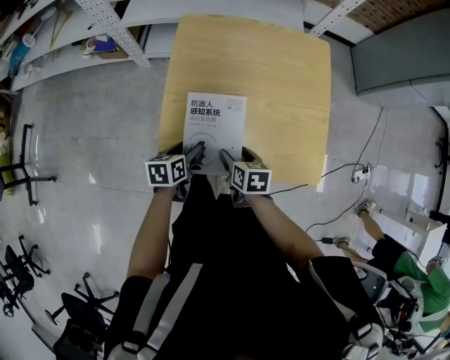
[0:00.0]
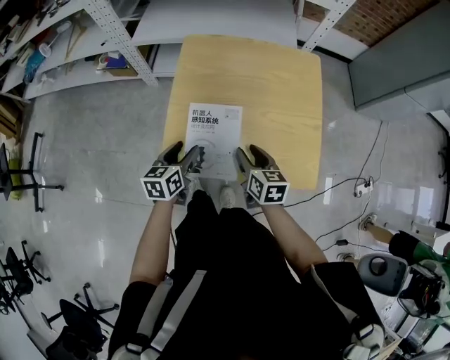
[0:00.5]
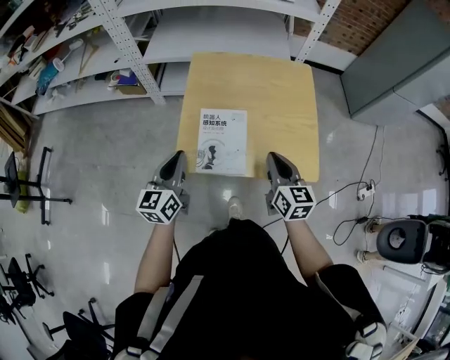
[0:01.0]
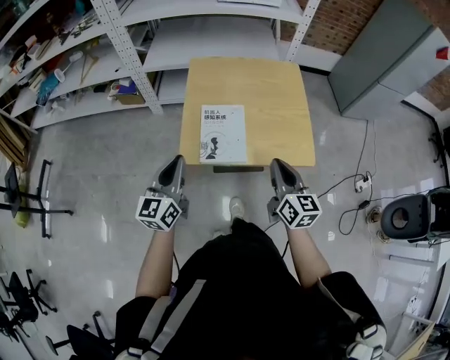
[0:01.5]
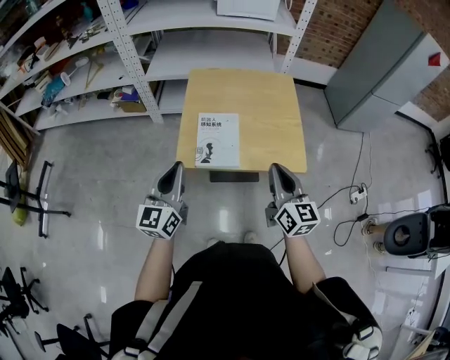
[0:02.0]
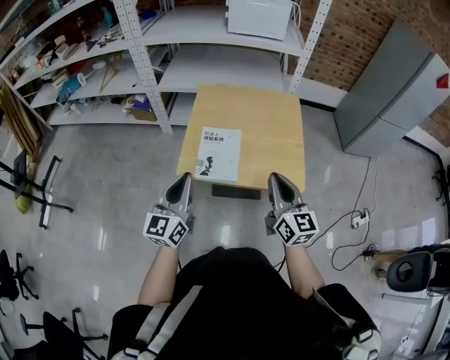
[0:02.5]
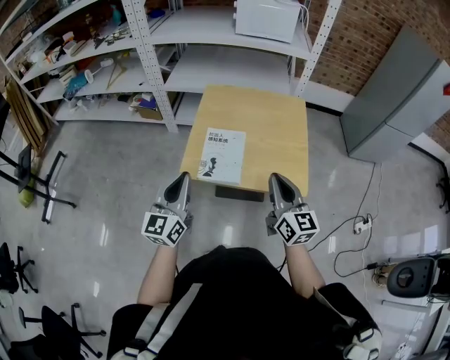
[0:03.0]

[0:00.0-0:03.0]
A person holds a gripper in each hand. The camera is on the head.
0:00.0 to 0:01.5: Both grippers move upward and backward, about 30 cm. The right gripper tilts its fingers some 40 degrees upward, and closes, while the left gripper angles its fingers upward, by about 40 degrees, and closes its fingers.
0:01.5 to 0:03.0: The left gripper heads to the right and upward, covering about 5 cm, while the right gripper is displaced upward by approximately 5 cm.

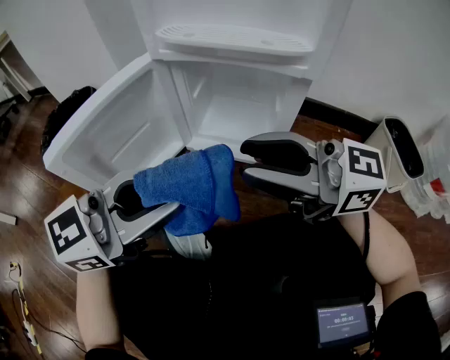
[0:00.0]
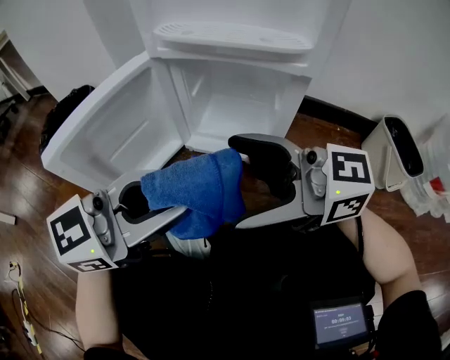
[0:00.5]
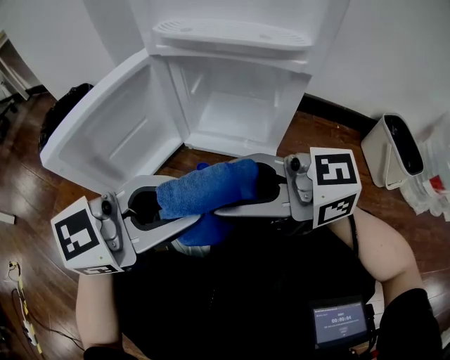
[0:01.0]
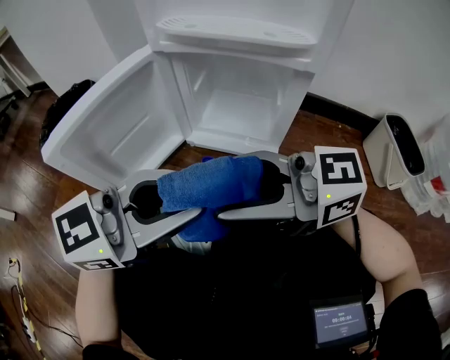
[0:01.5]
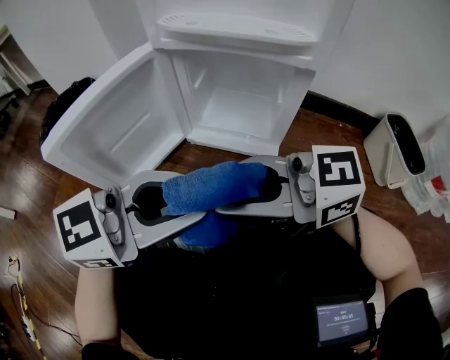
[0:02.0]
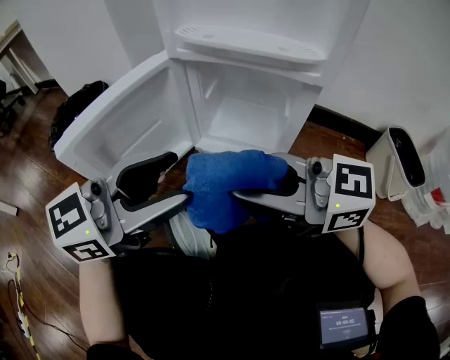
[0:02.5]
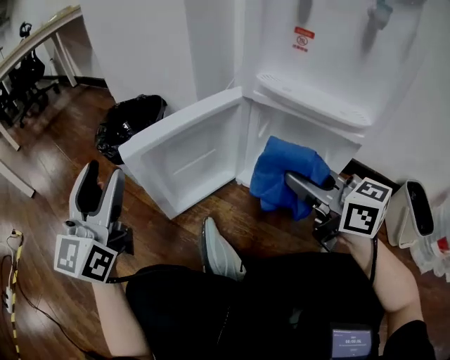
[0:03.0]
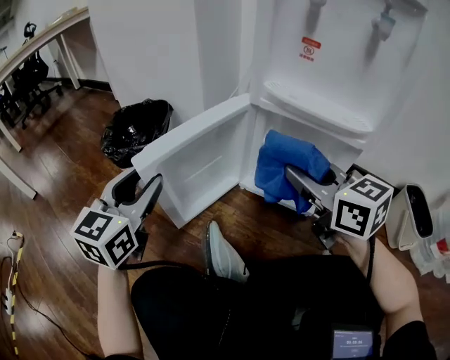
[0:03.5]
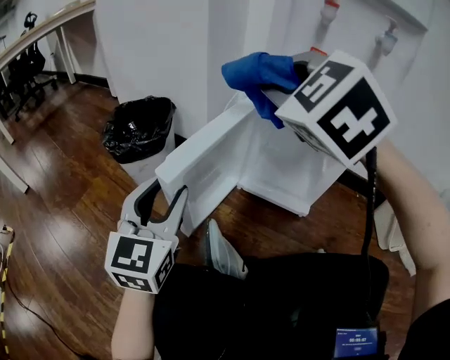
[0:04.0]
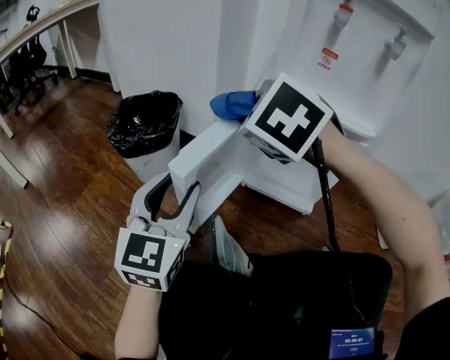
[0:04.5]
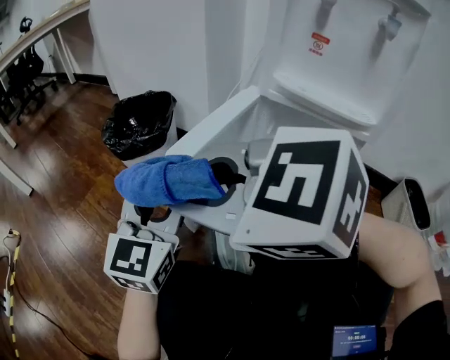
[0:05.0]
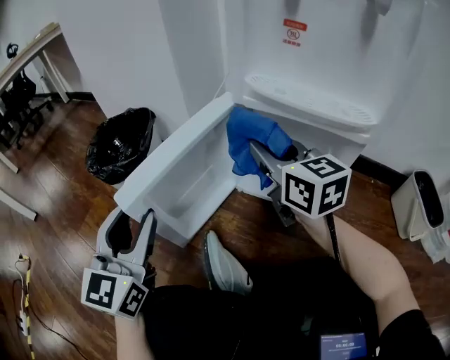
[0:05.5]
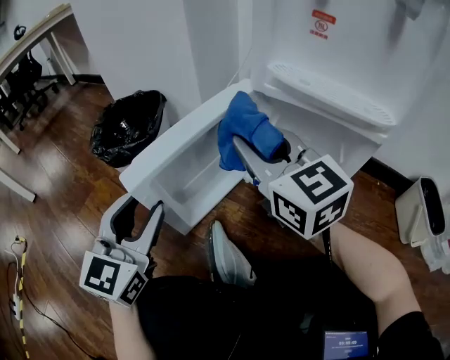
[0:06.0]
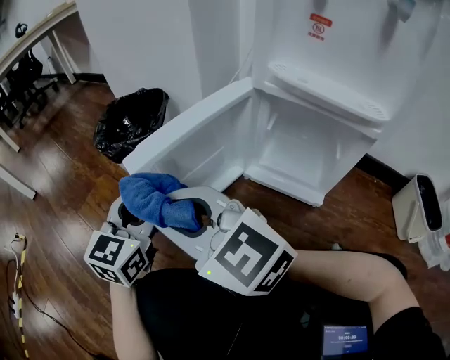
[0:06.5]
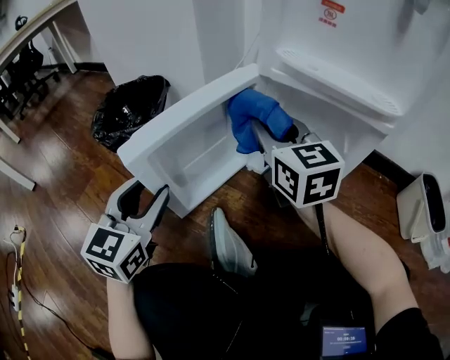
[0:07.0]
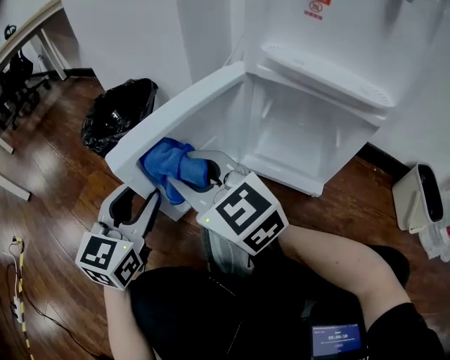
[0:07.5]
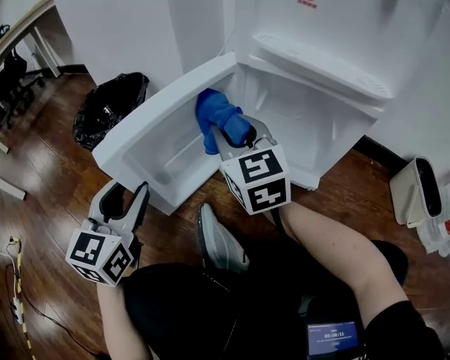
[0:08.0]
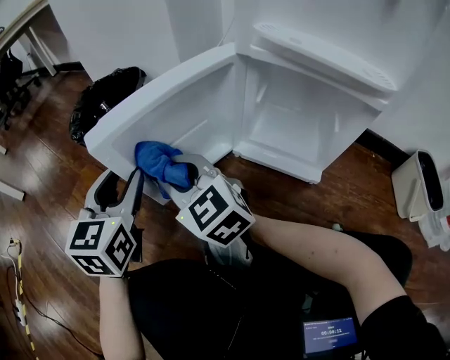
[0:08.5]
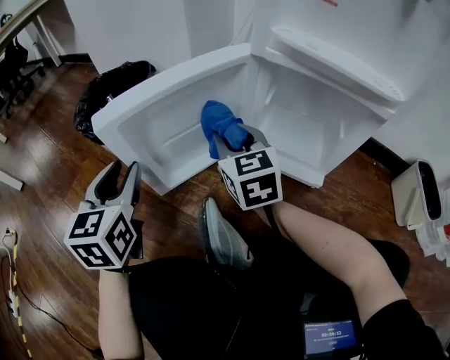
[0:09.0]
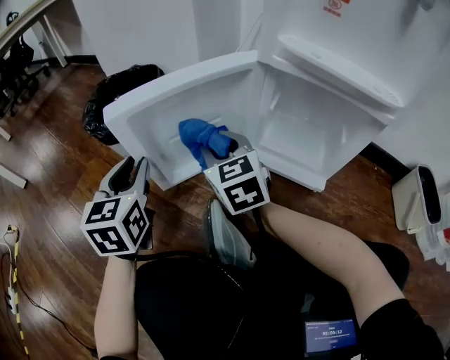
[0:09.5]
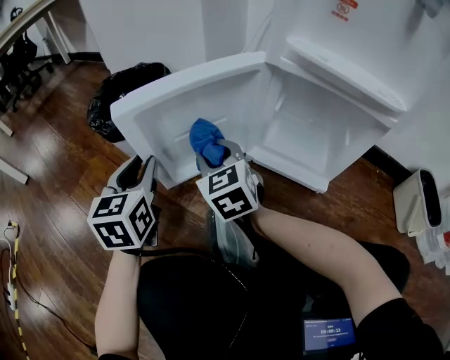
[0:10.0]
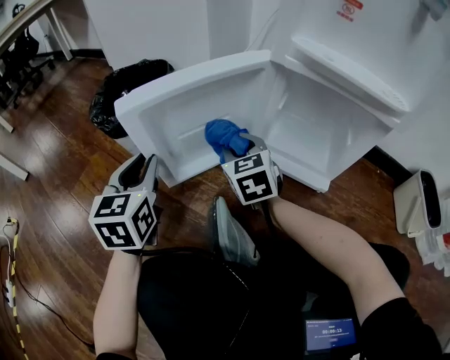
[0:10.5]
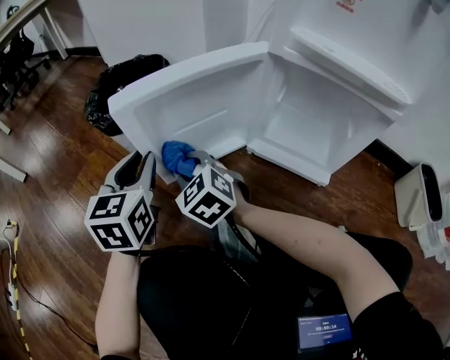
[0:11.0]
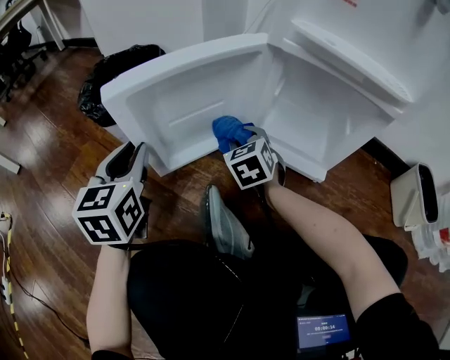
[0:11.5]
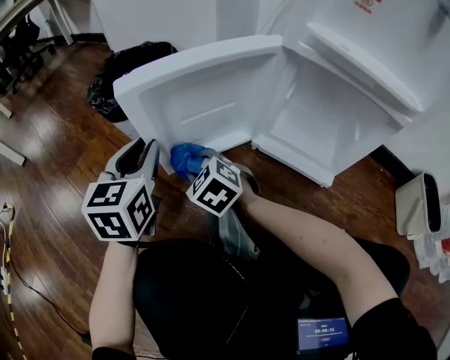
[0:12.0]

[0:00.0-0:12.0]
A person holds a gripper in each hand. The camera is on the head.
0:00.0 to 0:02.0: The right gripper ends up some 10 cm from where it was, and opens, then closes again.
0:02.0 to 0:04.0: The left gripper moves approximately 25 cm, and turns by about 70 degrees. Meanwhile the right gripper shifts by roughly 25 cm, and swivels roughly 80 degrees.
0:04.0 to 0:06.0: The right gripper heads downward, covering approximately 15 cm, and twists approximately 40 degrees clockwise, seen from behind.
0:06.0 to 0:08.0: The right gripper goes left and right, some 20 cm each way, reversing 3 times.
0:08.0 to 0:10.0: The right gripper goes left and right, some 15 cm each way, reversing 2 times. Meanwhile the left gripper shifts roughly 5 cm forward.
0:10.0 to 0:12.0: The right gripper swings left and right, approximately 20 cm each way, with 3 reversals, and rotates about 30 degrees.

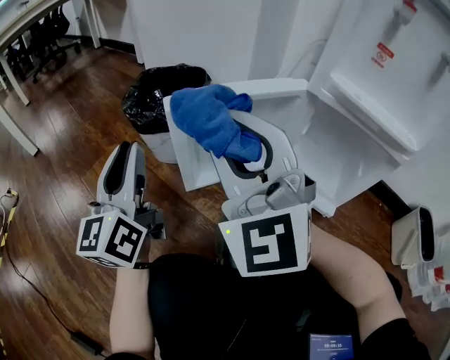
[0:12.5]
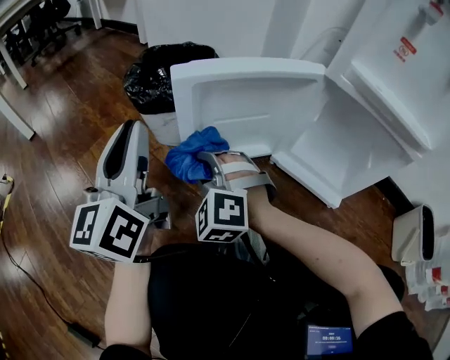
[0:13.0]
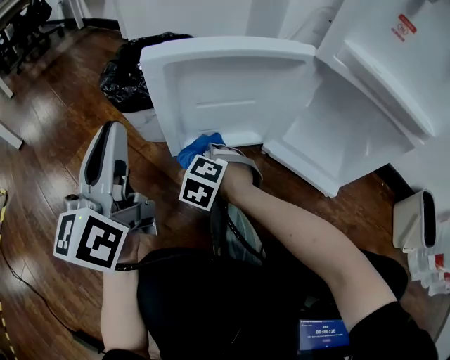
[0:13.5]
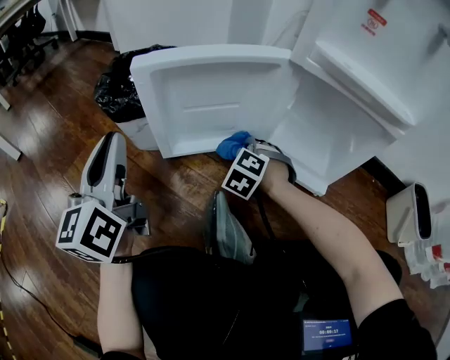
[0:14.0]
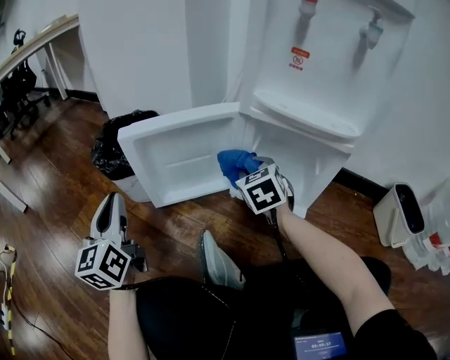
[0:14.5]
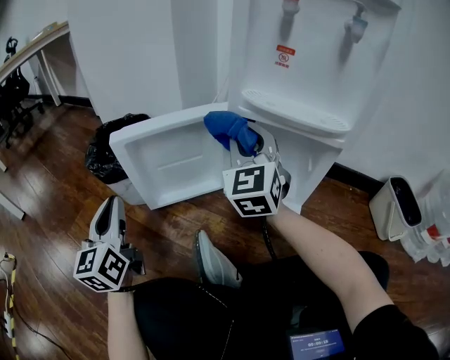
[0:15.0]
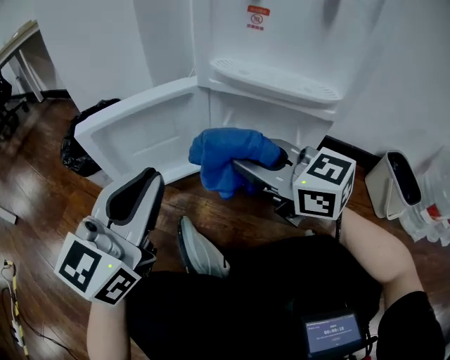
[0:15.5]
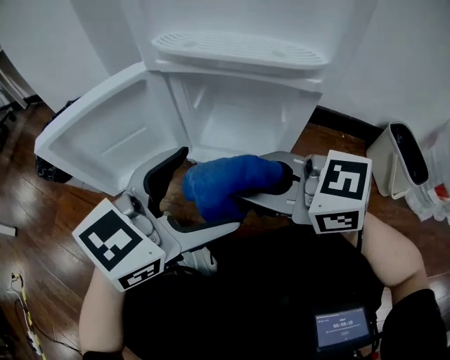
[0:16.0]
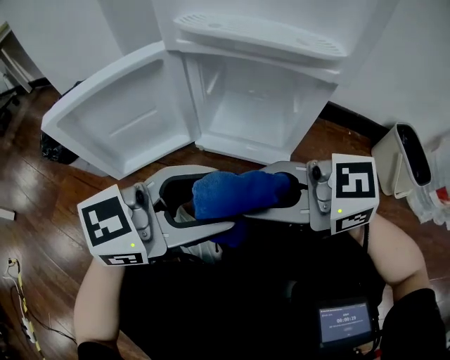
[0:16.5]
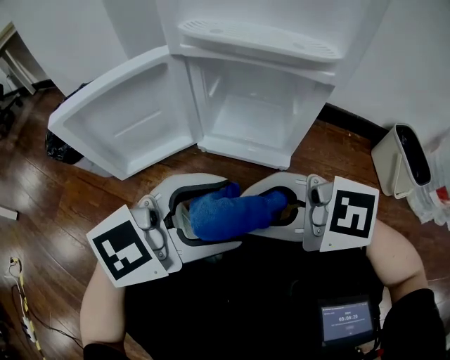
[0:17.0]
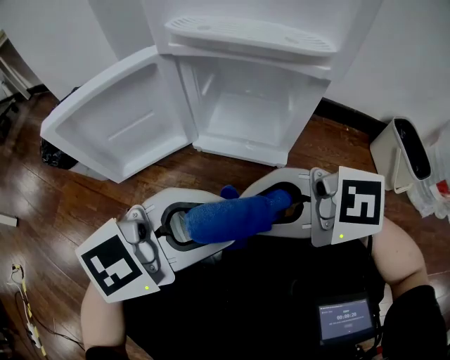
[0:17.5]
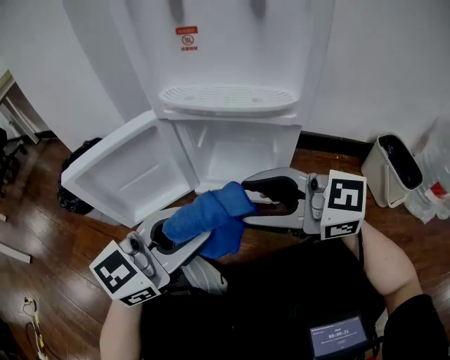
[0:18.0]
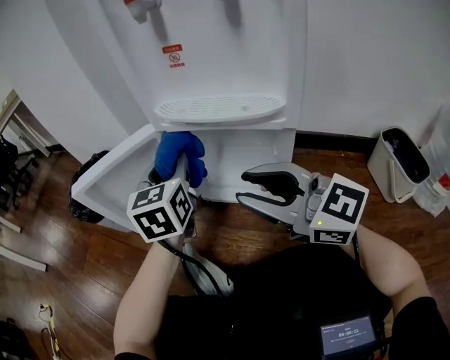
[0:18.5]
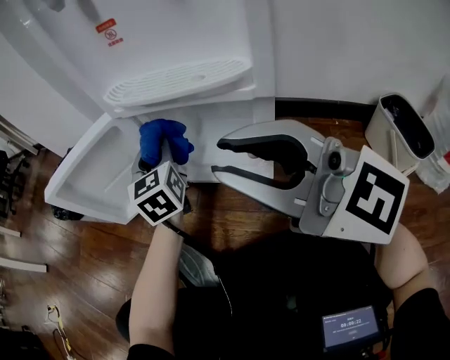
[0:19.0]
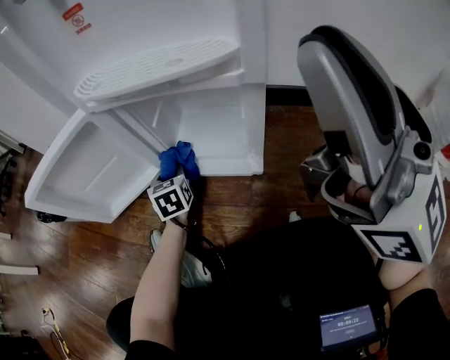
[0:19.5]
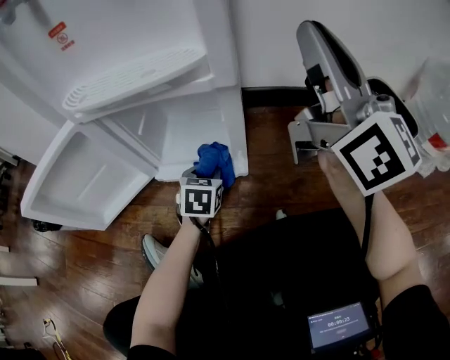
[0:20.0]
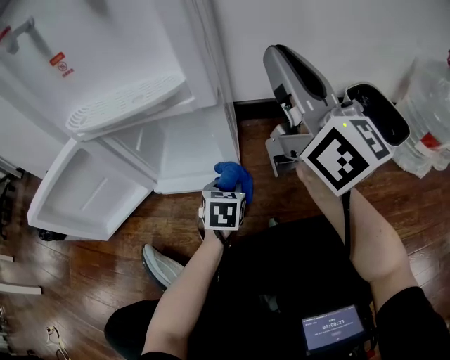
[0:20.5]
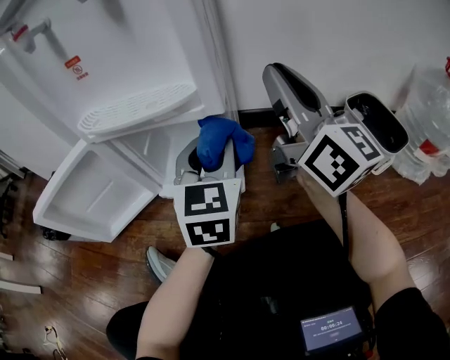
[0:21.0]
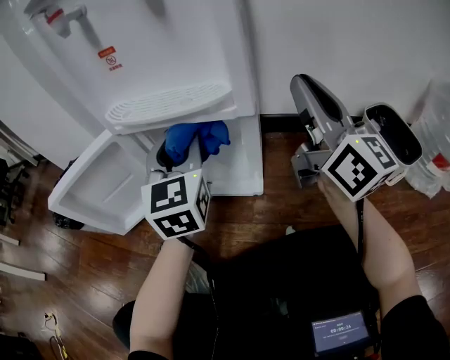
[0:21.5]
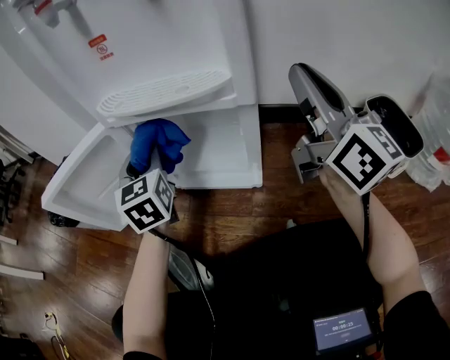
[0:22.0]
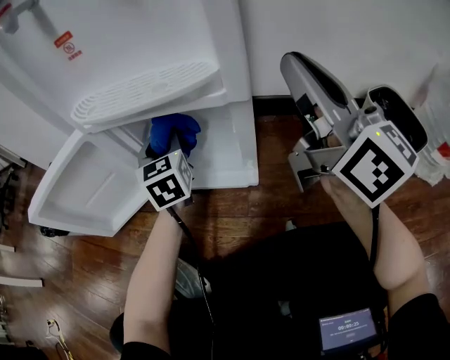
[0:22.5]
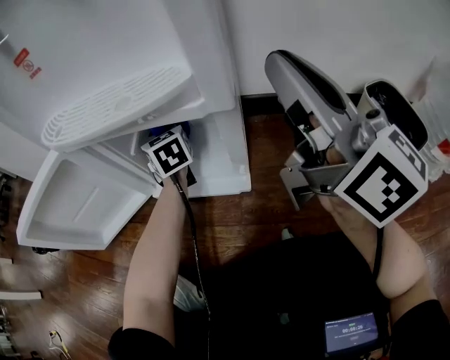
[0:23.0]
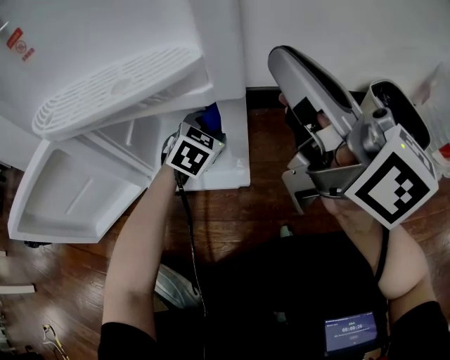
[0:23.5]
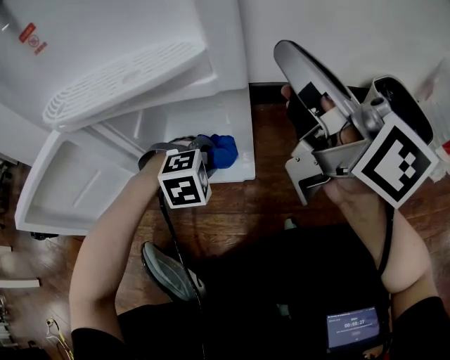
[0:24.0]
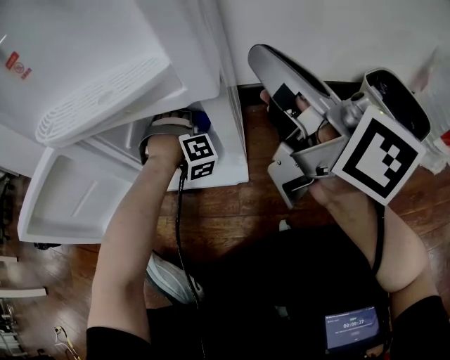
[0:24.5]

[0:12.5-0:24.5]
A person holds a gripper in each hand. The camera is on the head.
0:12.5 to 0:14.5: The right gripper shifts some 30 cm to the right, downward and forward, and tips its fingers downward by roughly 40 degrees.
0:14.5 to 0:16.5: The right gripper changes place by about 25 cm, and swivels some 70 degrees, while the left gripper travels upward and back again, some 10 cm each way, swivels some 80 degrees, and opens.
0:16.5 to 0:18.5: The right gripper shifts by some 10 cm, and swivels about 30 degrees; the left gripper shifts by about 20 cm, changes its angle by approximately 70 degrees, and closes up.
0:18.5 to 0:20.5: The right gripper moves some 25 cm, and changes its angle by some 50 degrees, while the left gripper shifts some 25 cm downward, and tips its fingers downward by roughly 30 degrees.
0:20.5 to 0:22.5: The left gripper moves upward, to the left and forward, approximately 25 cm, and tilts its fingers approximately 30 degrees upward.
0:22.5 to 0:24.5: The left gripper is displaced downward by some 15 cm, and rotates around the line of its fingers by approximately 110 degrees, clockwise from behind.
